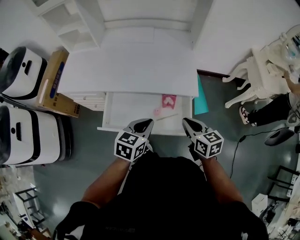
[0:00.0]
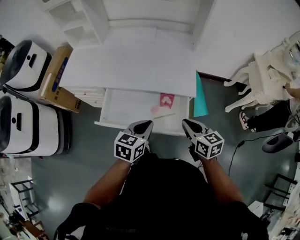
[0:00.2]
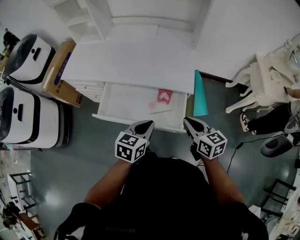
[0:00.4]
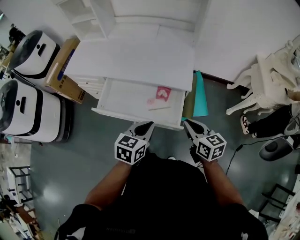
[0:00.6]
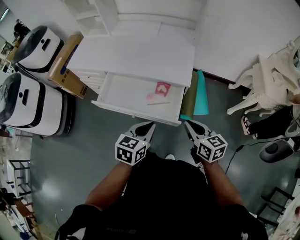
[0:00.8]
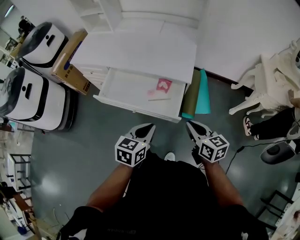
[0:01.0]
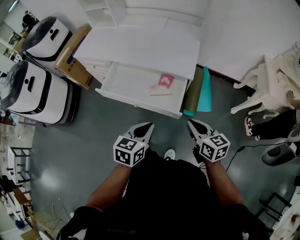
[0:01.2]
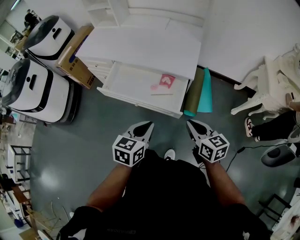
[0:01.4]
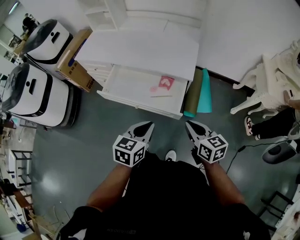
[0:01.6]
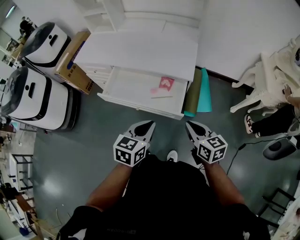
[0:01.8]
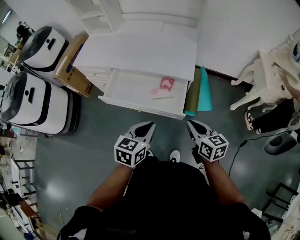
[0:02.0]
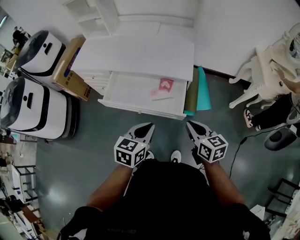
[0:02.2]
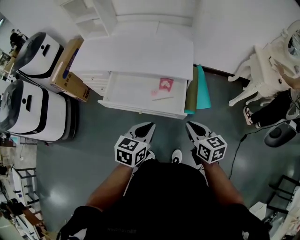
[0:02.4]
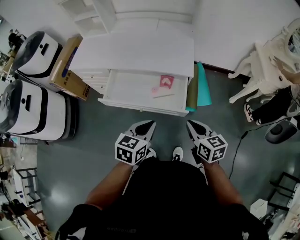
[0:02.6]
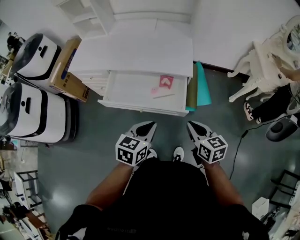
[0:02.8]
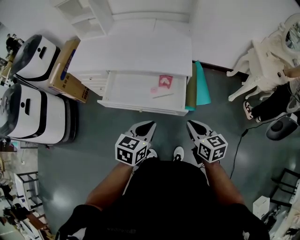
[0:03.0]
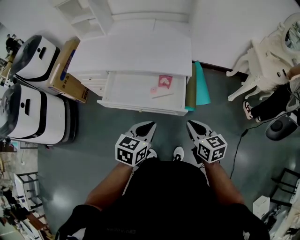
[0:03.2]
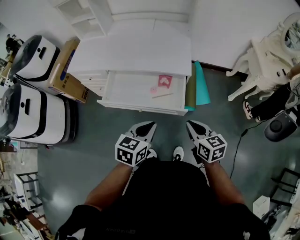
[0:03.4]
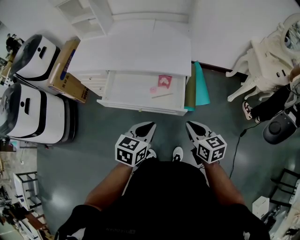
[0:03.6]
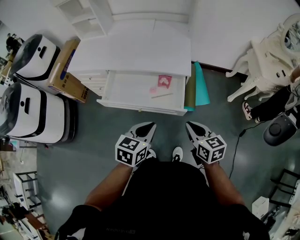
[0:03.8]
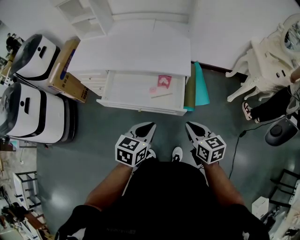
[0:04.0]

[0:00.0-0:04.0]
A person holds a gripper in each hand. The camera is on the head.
0:00.0 to 0:01.4: The grippers both shift backward and to the right by about 20 cm.
0:01.4 to 0:02.6: The right gripper changes place by roughly 5 cm; the left gripper shifts by roughly 5 cm.
0:02.6 to 0:04.0: The grippers stay close to where they were, moving slightly.

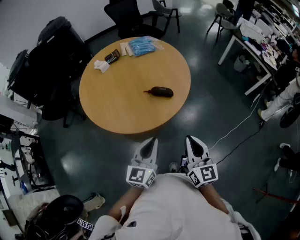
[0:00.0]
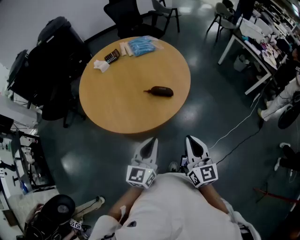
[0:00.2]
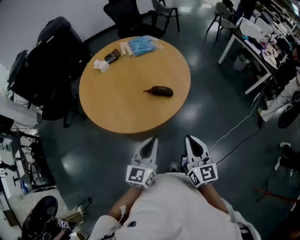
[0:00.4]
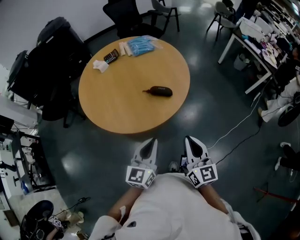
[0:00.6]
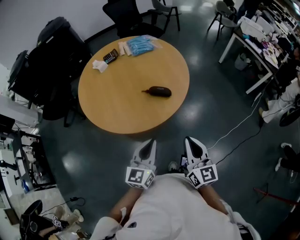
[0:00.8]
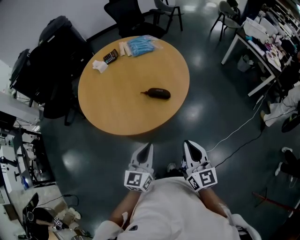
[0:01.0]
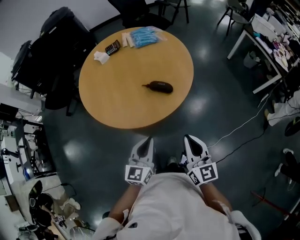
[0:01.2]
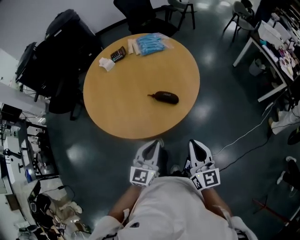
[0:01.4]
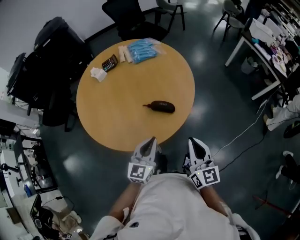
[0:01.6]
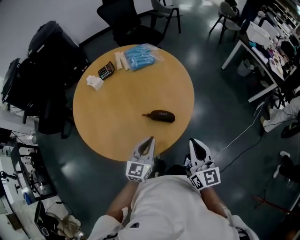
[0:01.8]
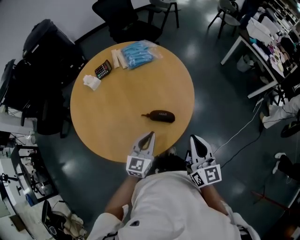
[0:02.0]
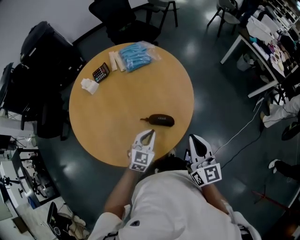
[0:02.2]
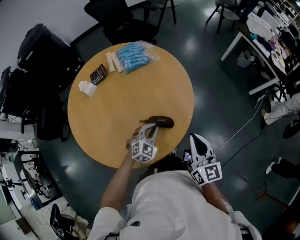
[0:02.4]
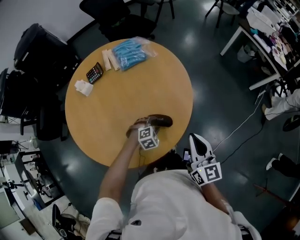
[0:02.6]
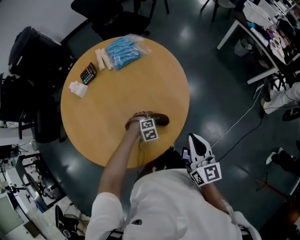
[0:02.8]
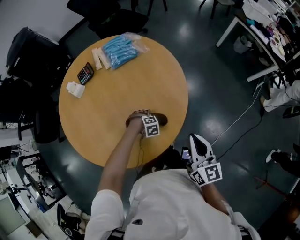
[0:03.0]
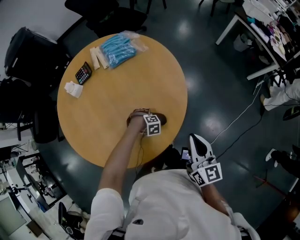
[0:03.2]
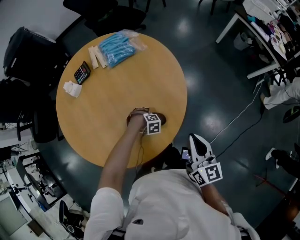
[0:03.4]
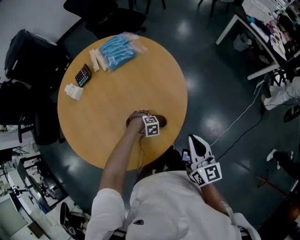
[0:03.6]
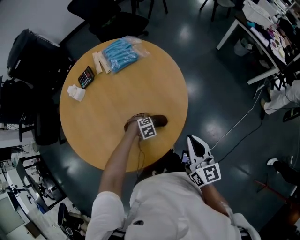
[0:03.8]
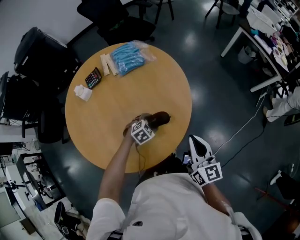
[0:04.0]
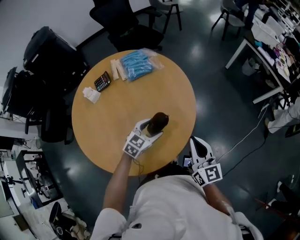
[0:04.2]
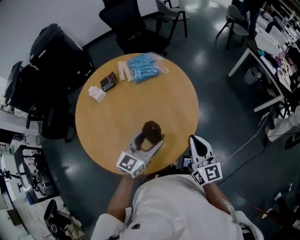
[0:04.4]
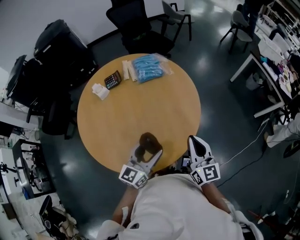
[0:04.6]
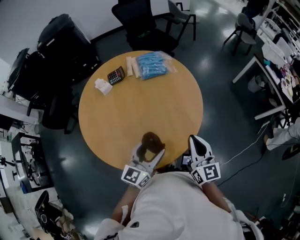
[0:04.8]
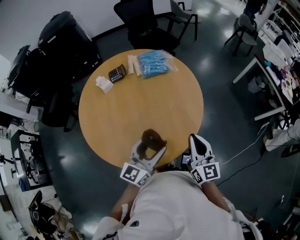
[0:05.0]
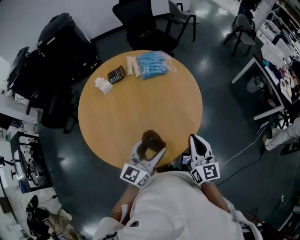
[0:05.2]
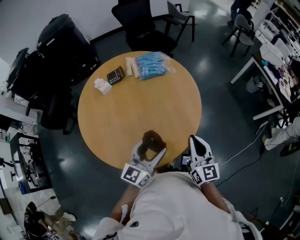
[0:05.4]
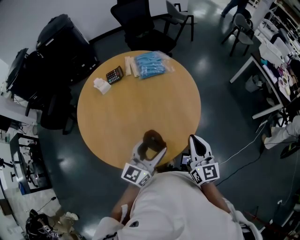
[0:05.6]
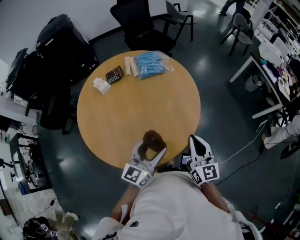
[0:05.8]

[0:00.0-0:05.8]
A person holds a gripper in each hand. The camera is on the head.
0:00.0 to 0:01.4: The right gripper moves forward, approximately 5 cm; the left gripper heads forward and downward, covering about 10 cm.
0:01.4 to 0:02.8: The left gripper shifts by roughly 40 cm, tips its fingers downward by some 60 degrees, and opens up. Meanwhile the right gripper shifts by roughly 20 cm.
0:02.8 to 0:04.4: The left gripper heads upward, covering approximately 30 cm, and tips its fingers upward by approximately 70 degrees, while the right gripper moves about 5 cm.
0:04.4 to 0:05.8: The left gripper goes approximately 5 cm backward.

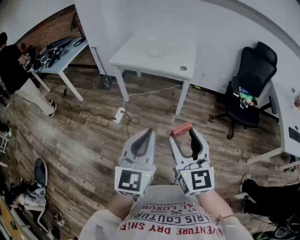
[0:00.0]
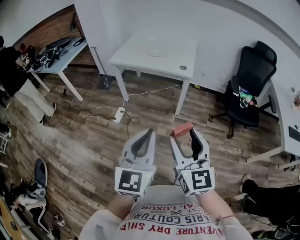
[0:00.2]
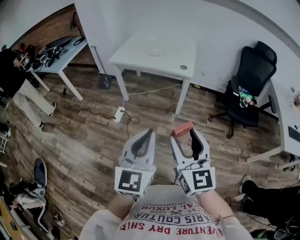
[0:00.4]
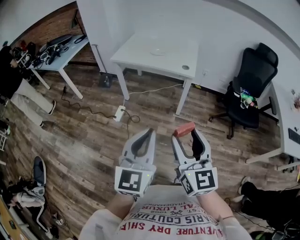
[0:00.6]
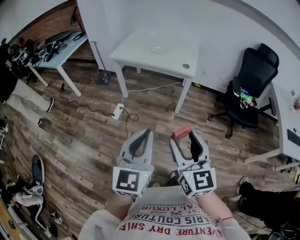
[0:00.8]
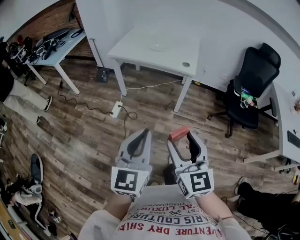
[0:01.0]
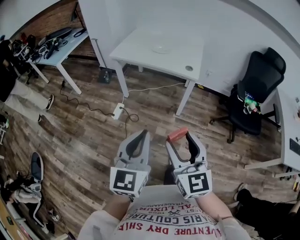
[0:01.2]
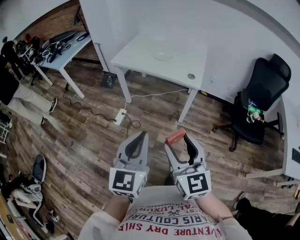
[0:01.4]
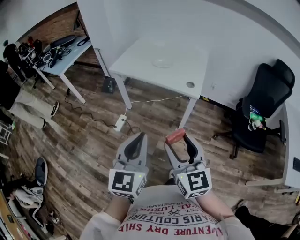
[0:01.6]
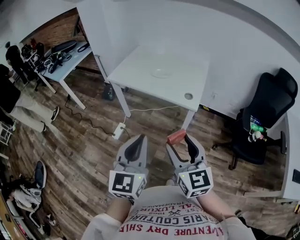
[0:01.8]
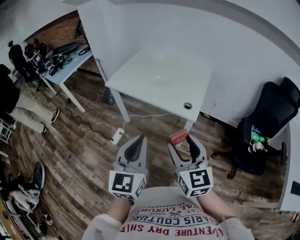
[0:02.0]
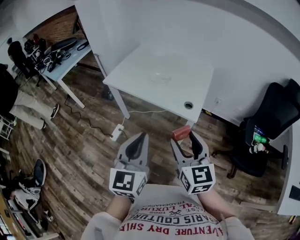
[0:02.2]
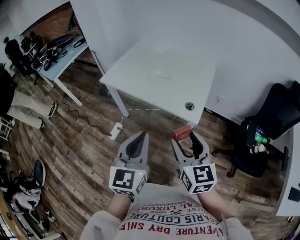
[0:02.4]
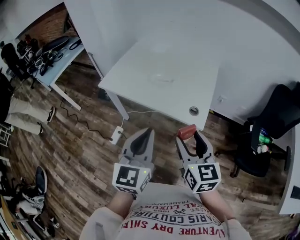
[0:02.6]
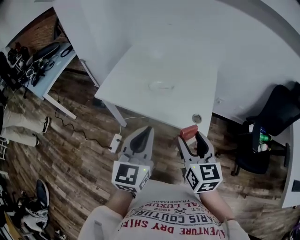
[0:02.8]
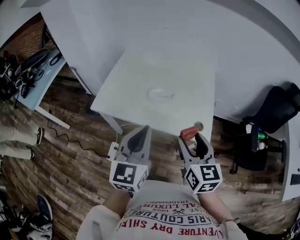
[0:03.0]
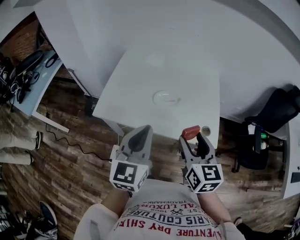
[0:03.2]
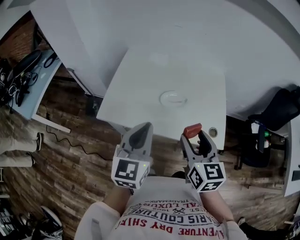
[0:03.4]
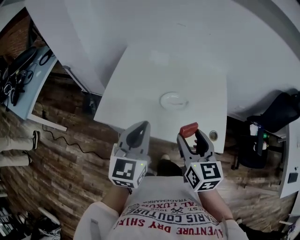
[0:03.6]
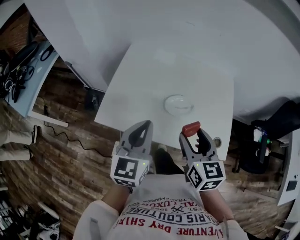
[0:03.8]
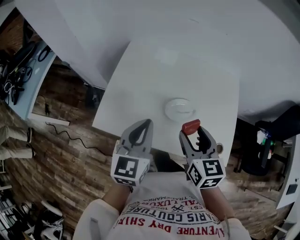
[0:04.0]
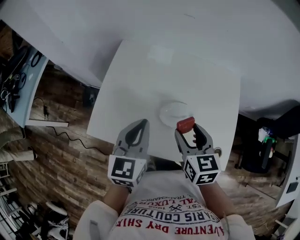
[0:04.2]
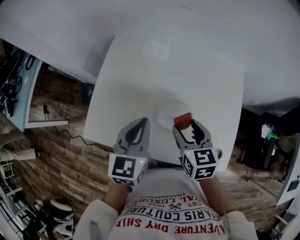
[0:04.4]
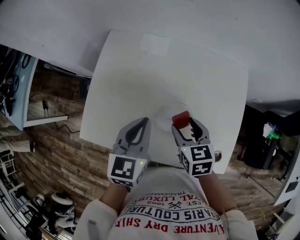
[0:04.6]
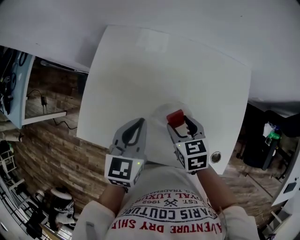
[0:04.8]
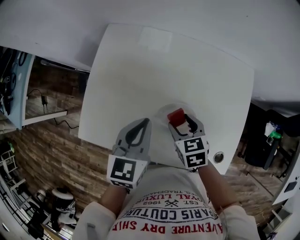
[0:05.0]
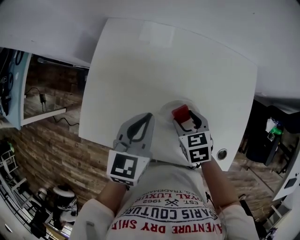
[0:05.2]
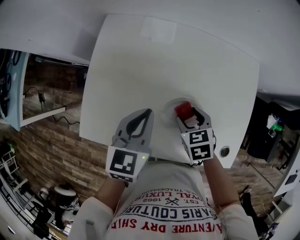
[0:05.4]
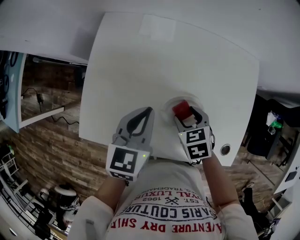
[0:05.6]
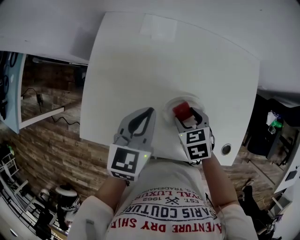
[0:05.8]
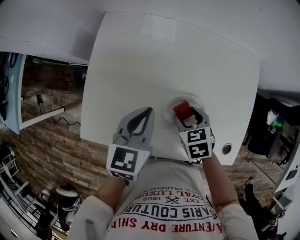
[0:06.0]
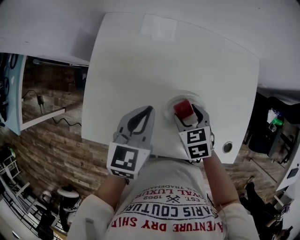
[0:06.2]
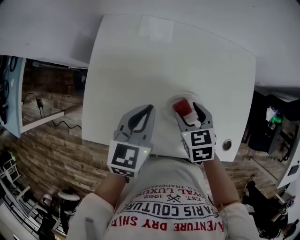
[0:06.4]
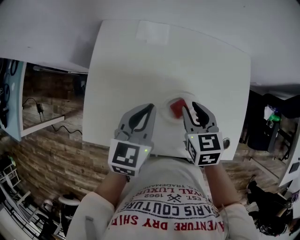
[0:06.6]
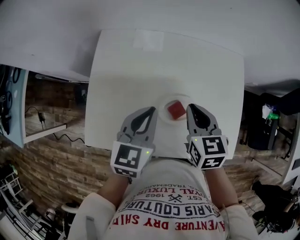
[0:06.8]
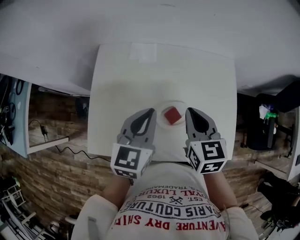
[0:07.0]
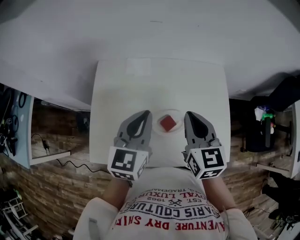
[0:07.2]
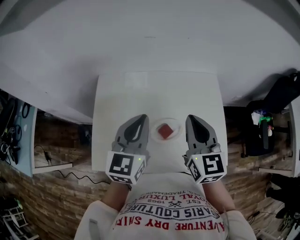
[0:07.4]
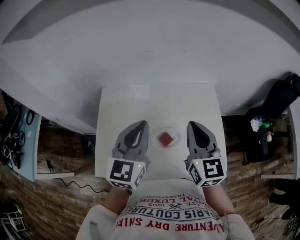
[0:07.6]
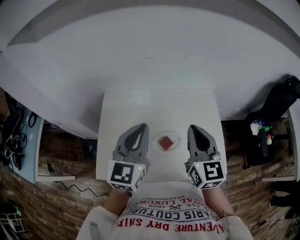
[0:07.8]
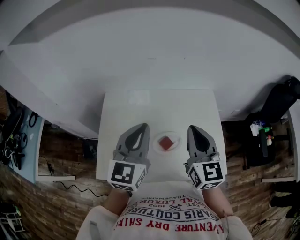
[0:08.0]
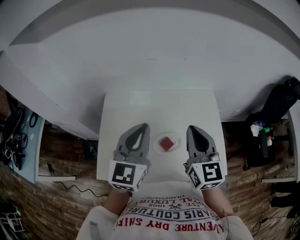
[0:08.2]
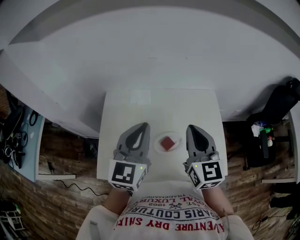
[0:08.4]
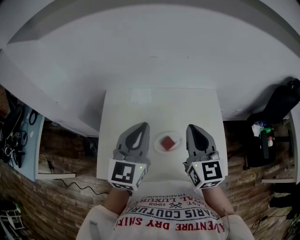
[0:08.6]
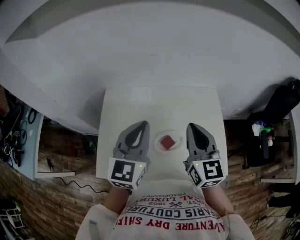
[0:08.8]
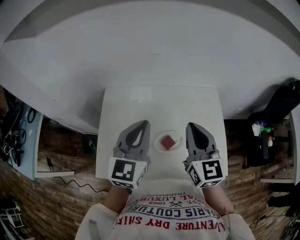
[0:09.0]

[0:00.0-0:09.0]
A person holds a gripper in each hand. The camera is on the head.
0:00.0 to 0:01.6: Both grippers travel together forward, about 20 cm.
0:01.6 to 0:03.0: The pair of grippers is taken forward, roughly 40 cm. The right gripper changes its angle by roughly 20 degrees.
0:03.0 to 0:04.4: The grippers both shift forward and downward by approximately 30 cm. The right gripper rotates approximately 20 degrees.
0:04.4 to 0:06.0: The left gripper goes about 5 cm downward. The right gripper goes roughly 15 cm downward, and rotates approximately 20 degrees.
0:06.0 to 0:07.6: The left gripper shifts some 20 cm upward, and changes its angle by some 30 degrees, while the right gripper moves upward, about 30 cm, tips its fingers upward by approximately 50 degrees, and closes up.
0:07.6 to 0:09.0: The grippers move only a little.

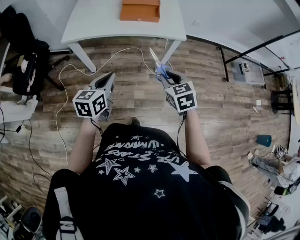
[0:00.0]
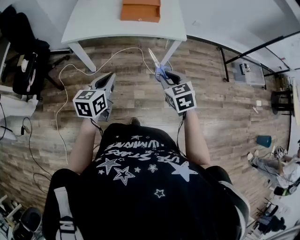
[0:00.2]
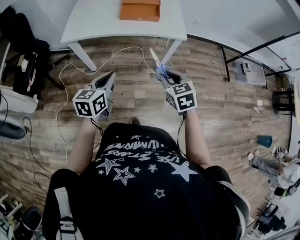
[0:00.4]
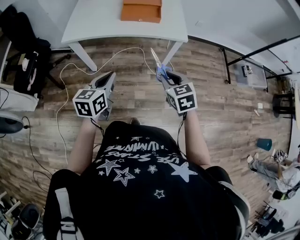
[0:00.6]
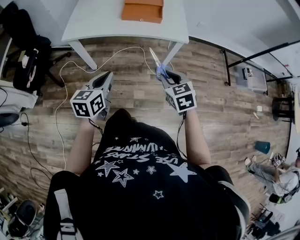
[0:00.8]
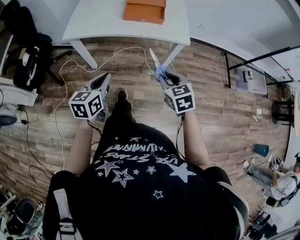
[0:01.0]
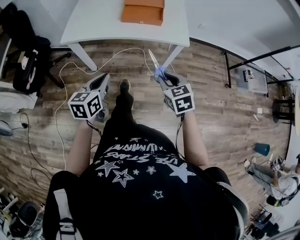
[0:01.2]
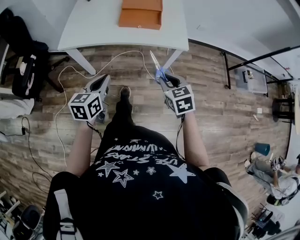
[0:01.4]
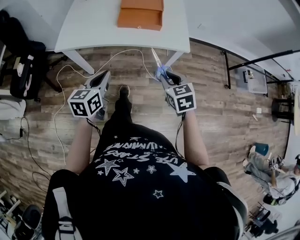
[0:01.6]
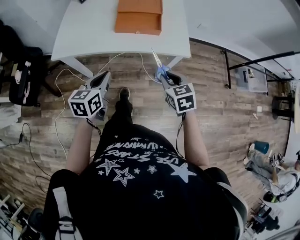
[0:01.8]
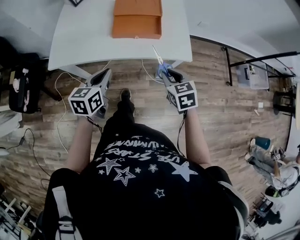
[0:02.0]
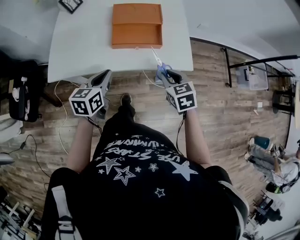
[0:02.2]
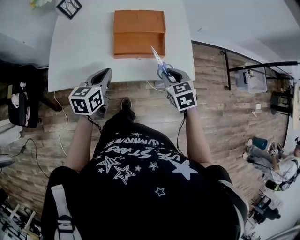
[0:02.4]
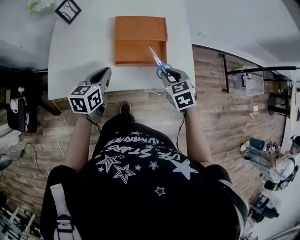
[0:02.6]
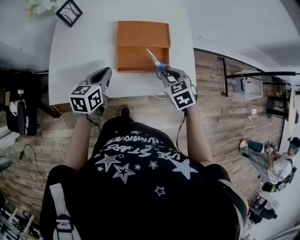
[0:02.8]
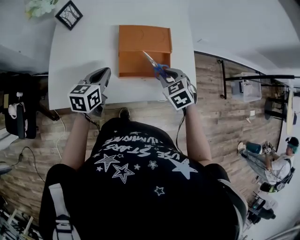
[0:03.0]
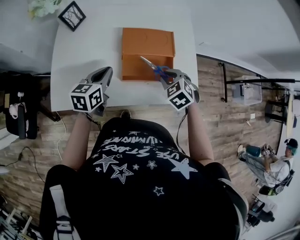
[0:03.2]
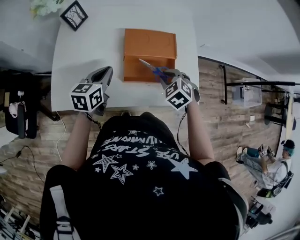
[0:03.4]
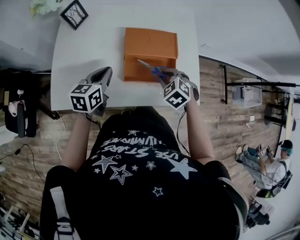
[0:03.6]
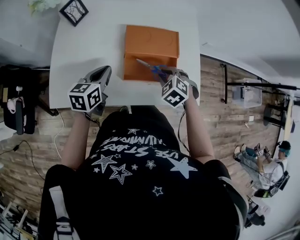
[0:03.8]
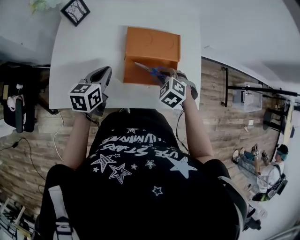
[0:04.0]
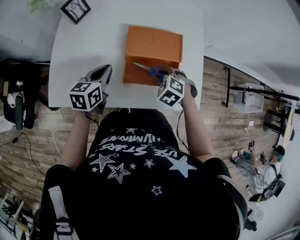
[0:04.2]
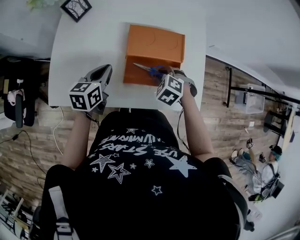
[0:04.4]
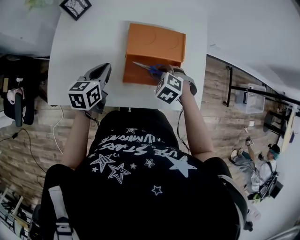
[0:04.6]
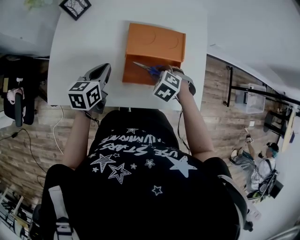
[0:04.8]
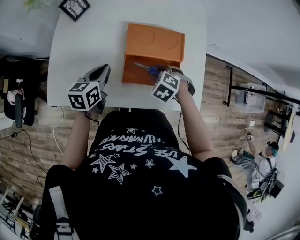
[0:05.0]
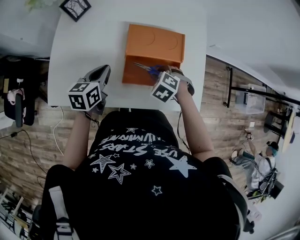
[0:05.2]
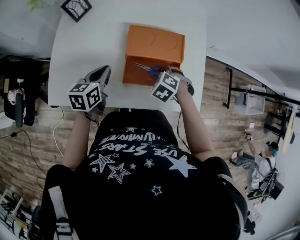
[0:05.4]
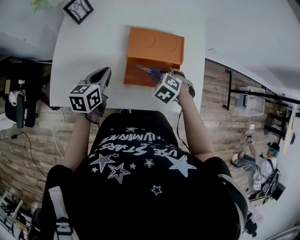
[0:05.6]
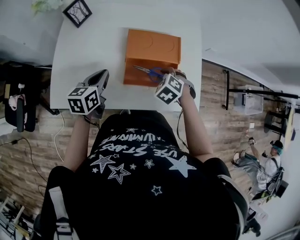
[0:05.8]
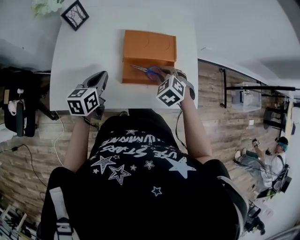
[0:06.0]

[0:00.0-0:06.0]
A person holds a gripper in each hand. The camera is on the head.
0:00.0 to 0:01.6: The grippers both shift forward by about 15 cm.
0:01.6 to 0:03.0: The two grippers go some 40 cm forward.
0:03.0 to 0:04.4: The left gripper goes about 5 cm forward. The right gripper moves downward and forward, about 10 cm, and turns by approximately 30 degrees.
0:04.4 to 0:06.0: The right gripper travels upward by approximately 5 cm.
